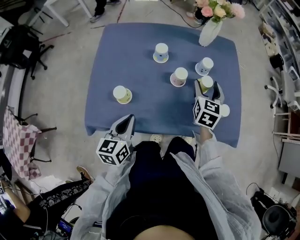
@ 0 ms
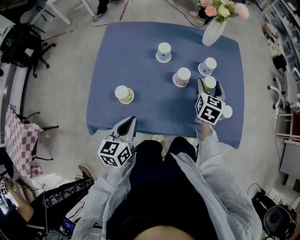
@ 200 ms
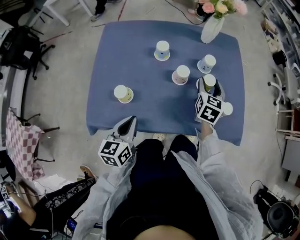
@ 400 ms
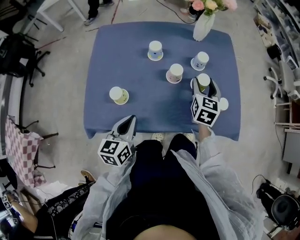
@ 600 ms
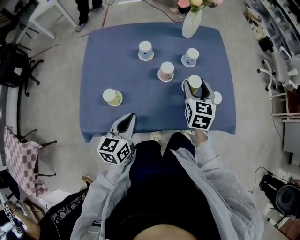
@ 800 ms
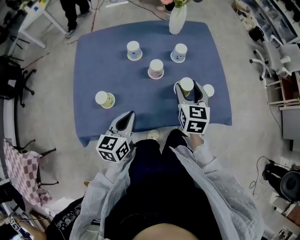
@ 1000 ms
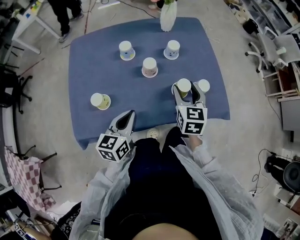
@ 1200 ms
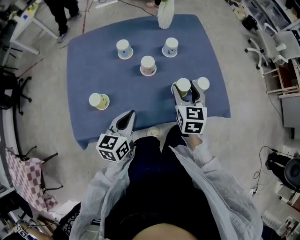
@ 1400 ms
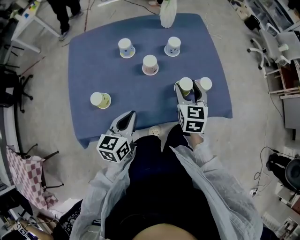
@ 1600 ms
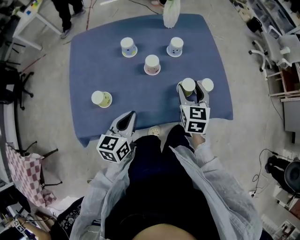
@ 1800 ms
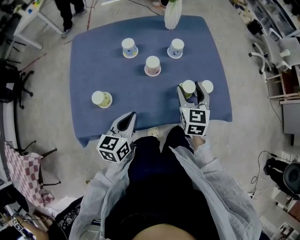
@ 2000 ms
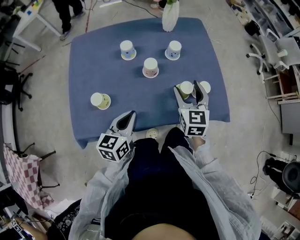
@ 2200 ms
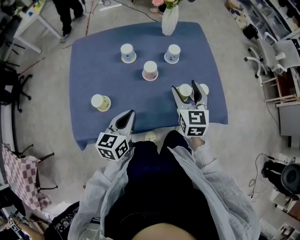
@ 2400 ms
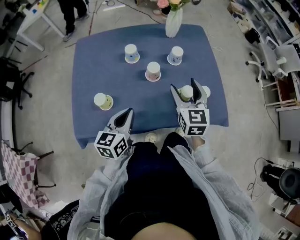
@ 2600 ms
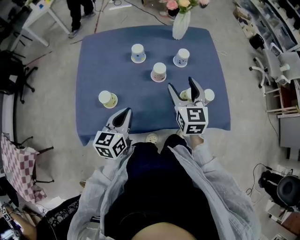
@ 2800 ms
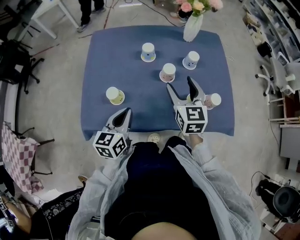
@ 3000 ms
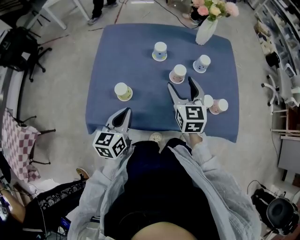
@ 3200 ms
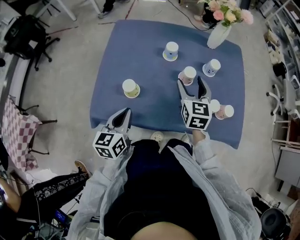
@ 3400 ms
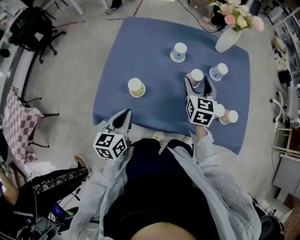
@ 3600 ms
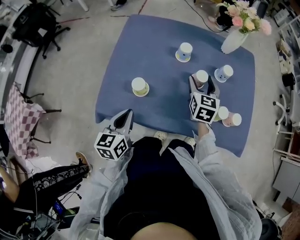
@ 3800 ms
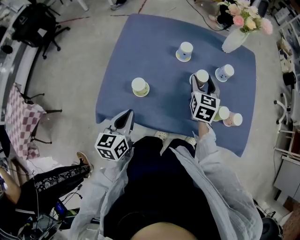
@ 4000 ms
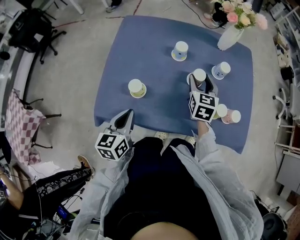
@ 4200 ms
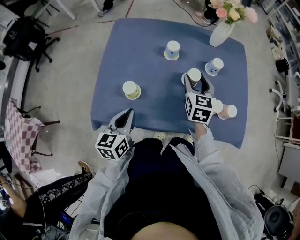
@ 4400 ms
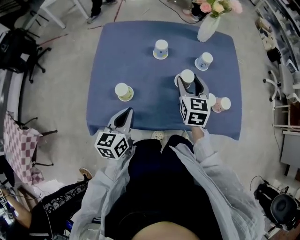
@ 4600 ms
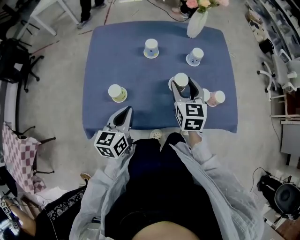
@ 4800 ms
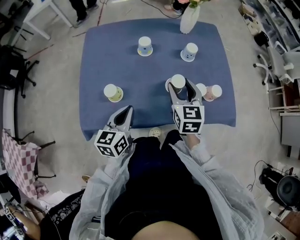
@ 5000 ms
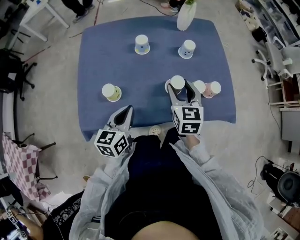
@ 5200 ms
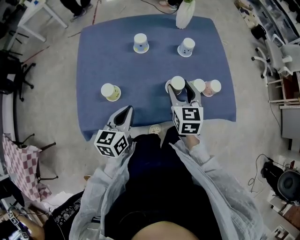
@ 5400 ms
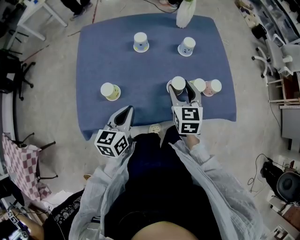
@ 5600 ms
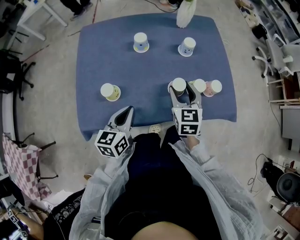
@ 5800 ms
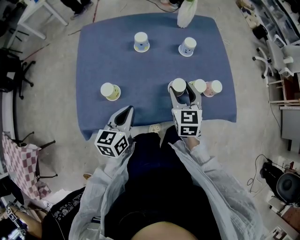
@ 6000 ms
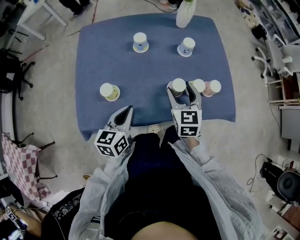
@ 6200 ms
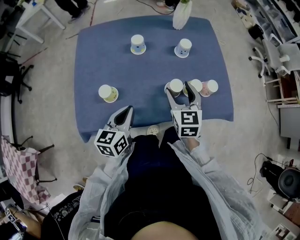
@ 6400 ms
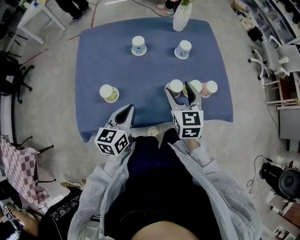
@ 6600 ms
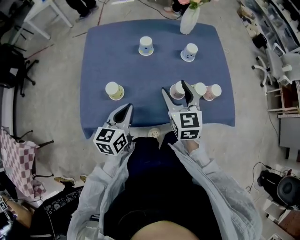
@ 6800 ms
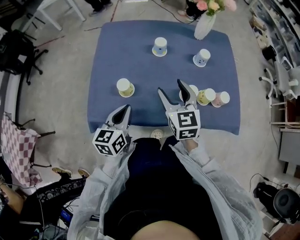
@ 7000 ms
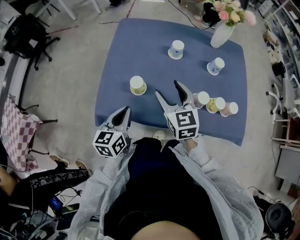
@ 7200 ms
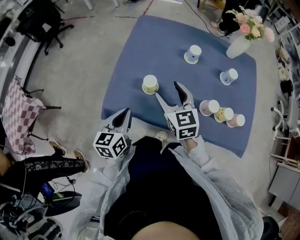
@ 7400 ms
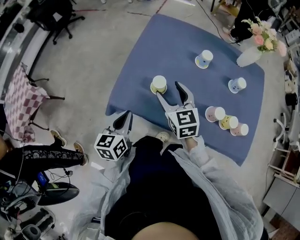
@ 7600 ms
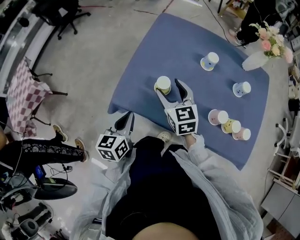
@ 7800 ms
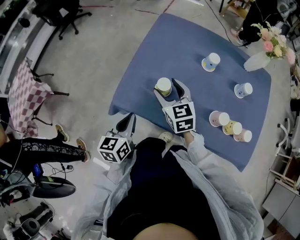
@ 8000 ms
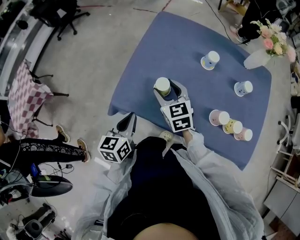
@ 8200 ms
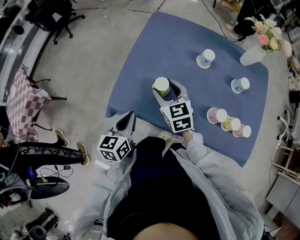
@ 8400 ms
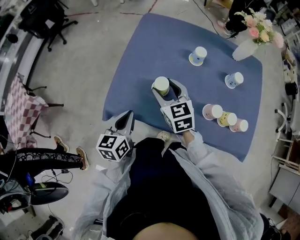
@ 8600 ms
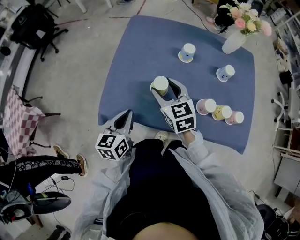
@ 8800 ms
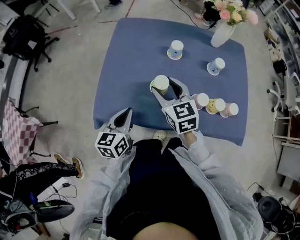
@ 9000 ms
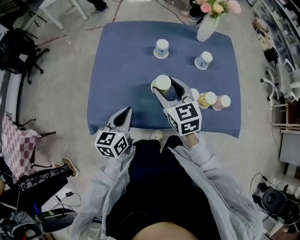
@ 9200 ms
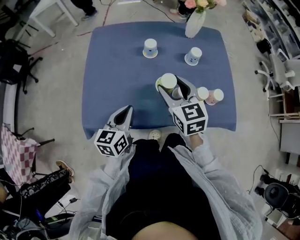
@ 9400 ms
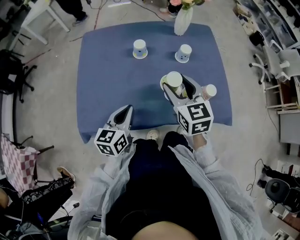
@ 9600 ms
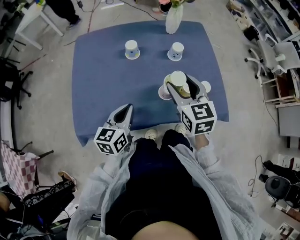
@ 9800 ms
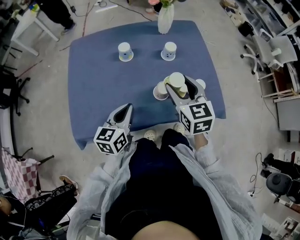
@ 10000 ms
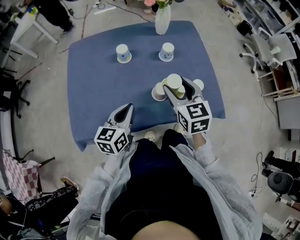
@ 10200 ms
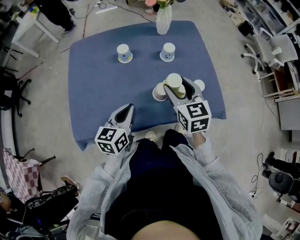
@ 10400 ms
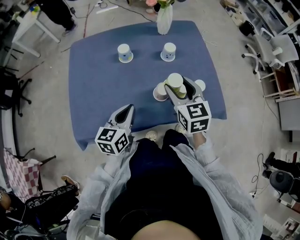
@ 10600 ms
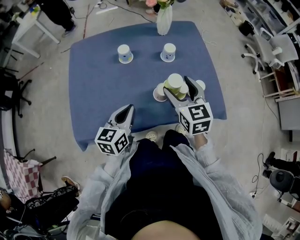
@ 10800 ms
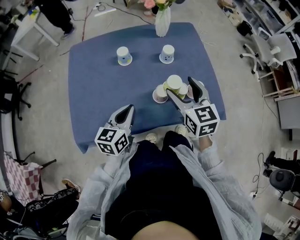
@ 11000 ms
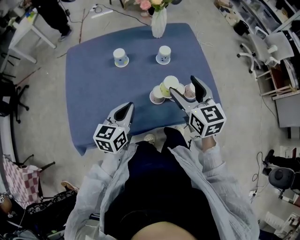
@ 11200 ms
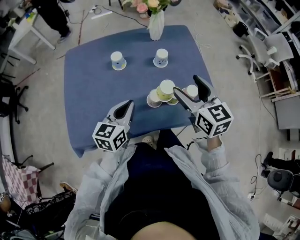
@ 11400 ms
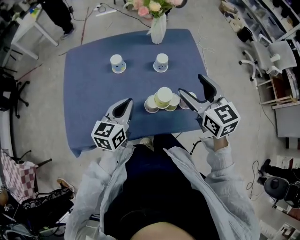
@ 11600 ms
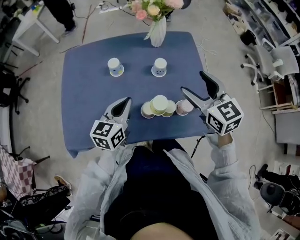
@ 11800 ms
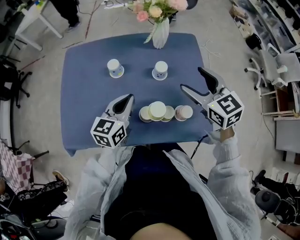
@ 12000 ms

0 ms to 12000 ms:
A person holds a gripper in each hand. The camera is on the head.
0 ms to 1600 ms: The right gripper goes about 10 cm backward. The left gripper shifts about 5 cm to the right.
1600 ms to 3000 ms: The right gripper goes about 10 cm to the left and upward; the left gripper travels to the left by roughly 5 cm.
3000 ms to 4400 ms: The left gripper shifts approximately 5 cm to the left, while the right gripper goes approximately 10 cm forward and downward.
4400 ms to 6000 ms: The left gripper shifts some 5 cm to the right. Meanwhile the right gripper moves backward and to the right, roughly 10 cm.
6000 ms to 7600 ms: The right gripper changes place by some 25 cm, and swivels roughly 40 degrees. The left gripper changes place by about 15 cm, and rotates some 30 degrees.
7600 ms to 9000 ms: Both grippers travel together to the right, approximately 5 cm.
9000 ms to 10400 ms: The grippers both shift to the right by roughly 20 cm. The right gripper rotates some 20 degrees, while the left gripper changes its angle by about 20 degrees.
10400 ms to 12000 ms: The left gripper is displaced forward and to the right by approximately 15 cm. The right gripper heads forward, to the right and upward, covering about 15 cm, and turns by some 20 degrees.

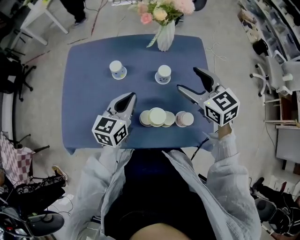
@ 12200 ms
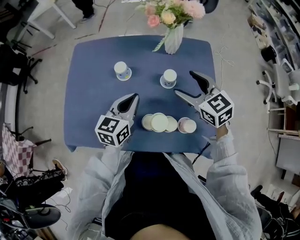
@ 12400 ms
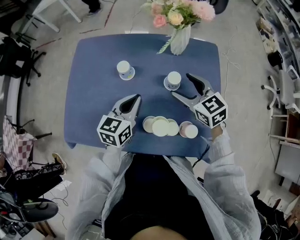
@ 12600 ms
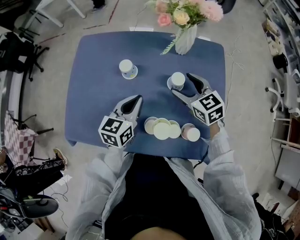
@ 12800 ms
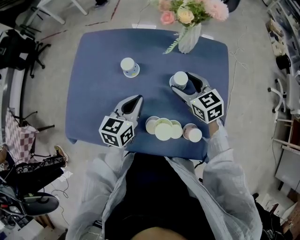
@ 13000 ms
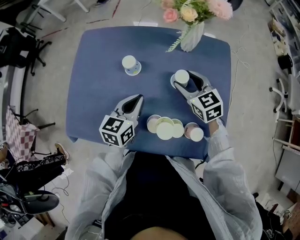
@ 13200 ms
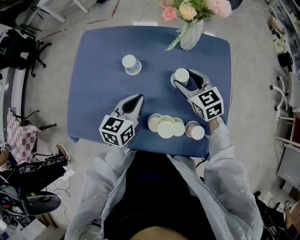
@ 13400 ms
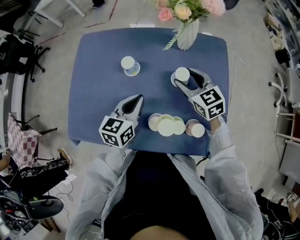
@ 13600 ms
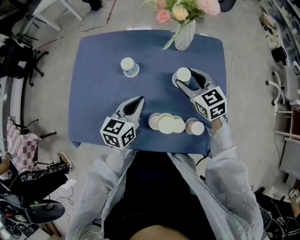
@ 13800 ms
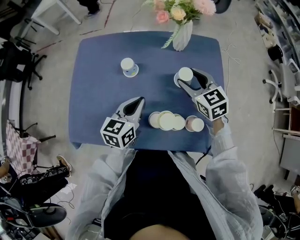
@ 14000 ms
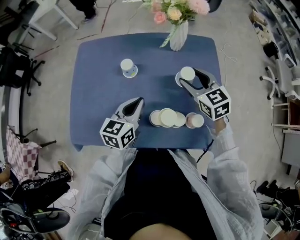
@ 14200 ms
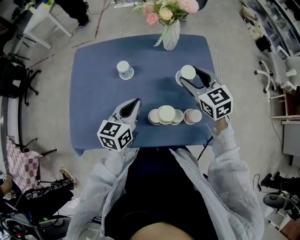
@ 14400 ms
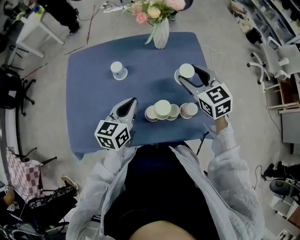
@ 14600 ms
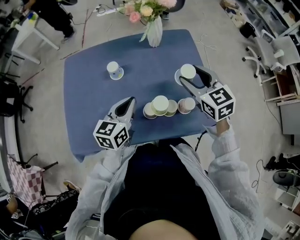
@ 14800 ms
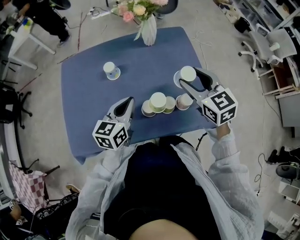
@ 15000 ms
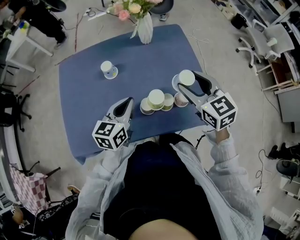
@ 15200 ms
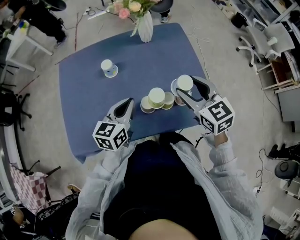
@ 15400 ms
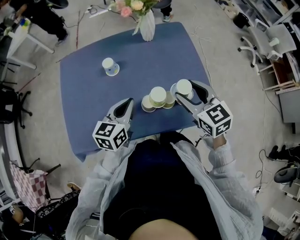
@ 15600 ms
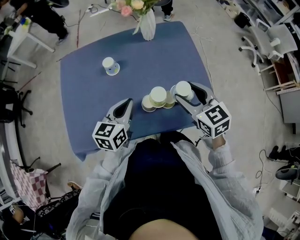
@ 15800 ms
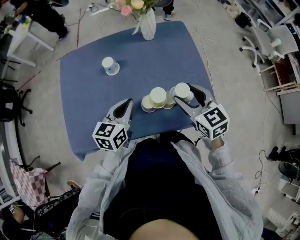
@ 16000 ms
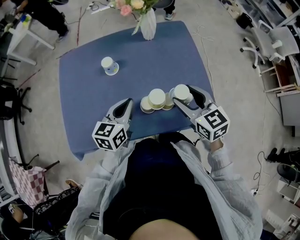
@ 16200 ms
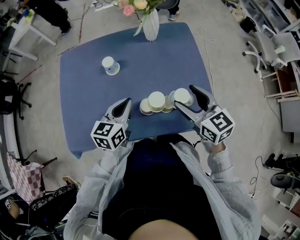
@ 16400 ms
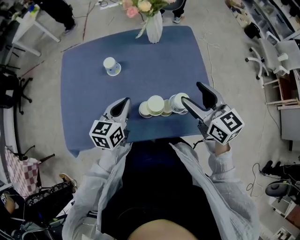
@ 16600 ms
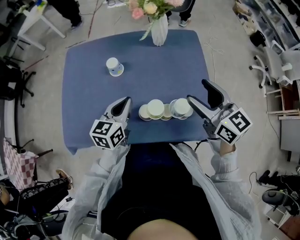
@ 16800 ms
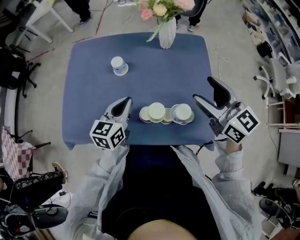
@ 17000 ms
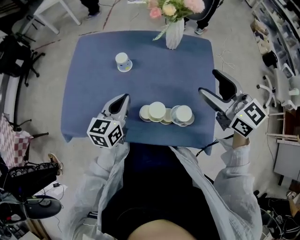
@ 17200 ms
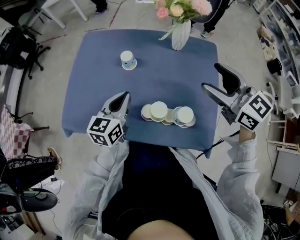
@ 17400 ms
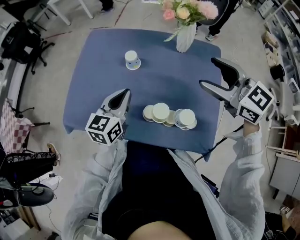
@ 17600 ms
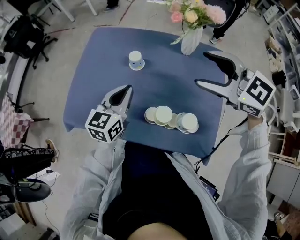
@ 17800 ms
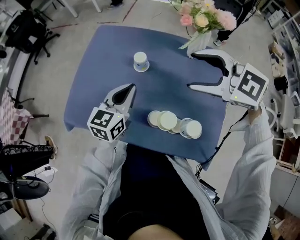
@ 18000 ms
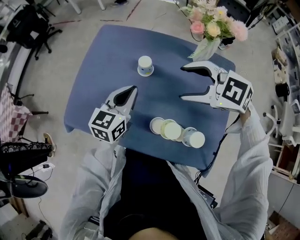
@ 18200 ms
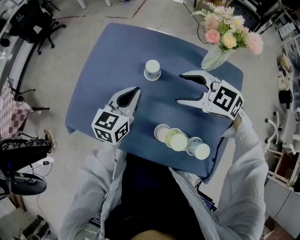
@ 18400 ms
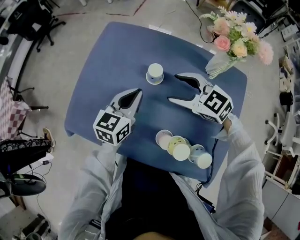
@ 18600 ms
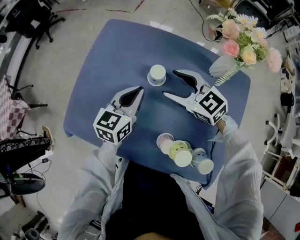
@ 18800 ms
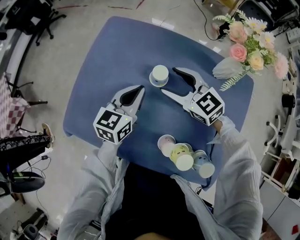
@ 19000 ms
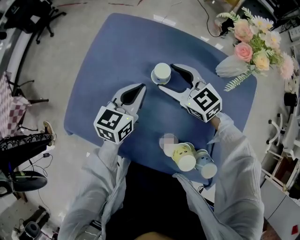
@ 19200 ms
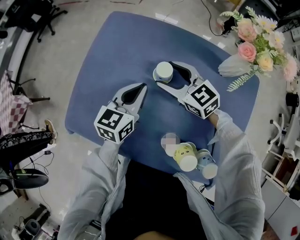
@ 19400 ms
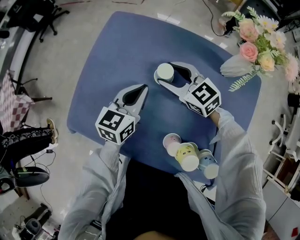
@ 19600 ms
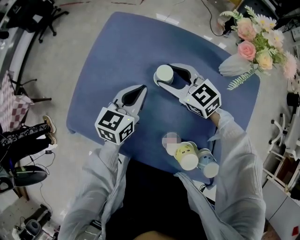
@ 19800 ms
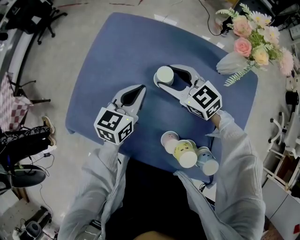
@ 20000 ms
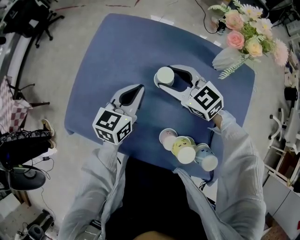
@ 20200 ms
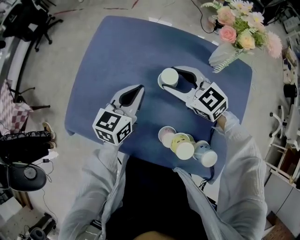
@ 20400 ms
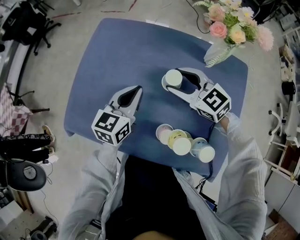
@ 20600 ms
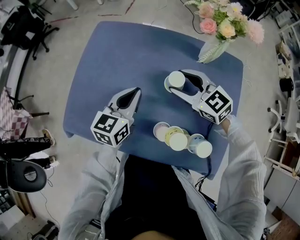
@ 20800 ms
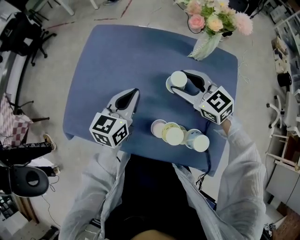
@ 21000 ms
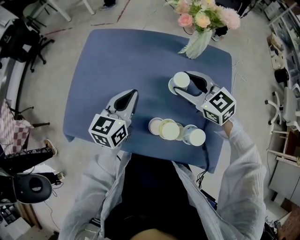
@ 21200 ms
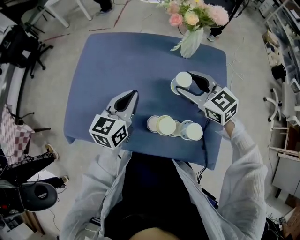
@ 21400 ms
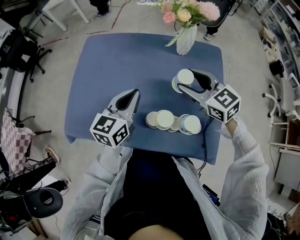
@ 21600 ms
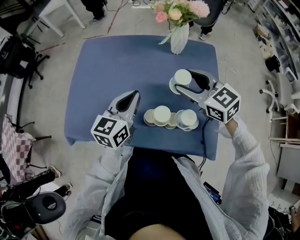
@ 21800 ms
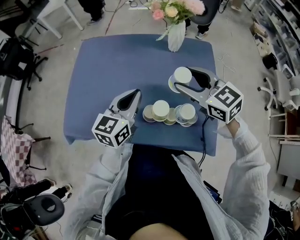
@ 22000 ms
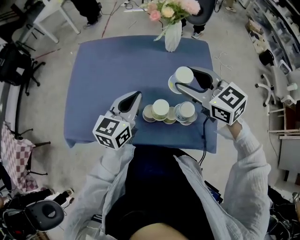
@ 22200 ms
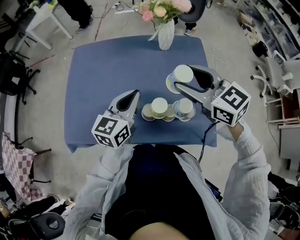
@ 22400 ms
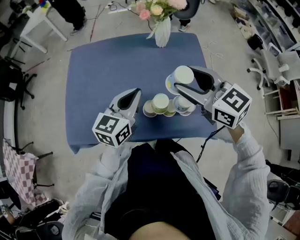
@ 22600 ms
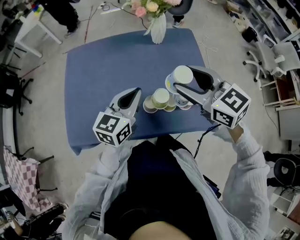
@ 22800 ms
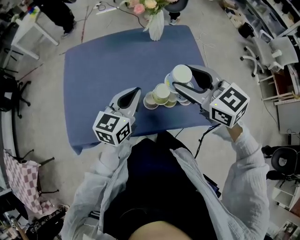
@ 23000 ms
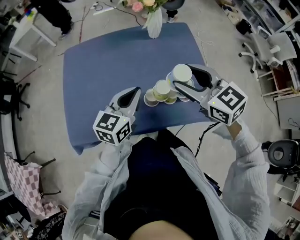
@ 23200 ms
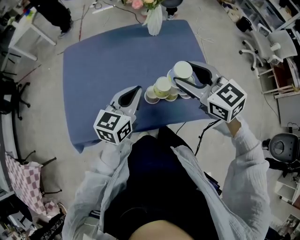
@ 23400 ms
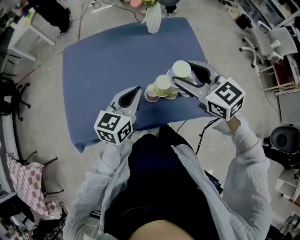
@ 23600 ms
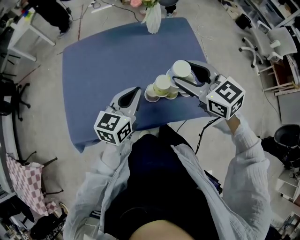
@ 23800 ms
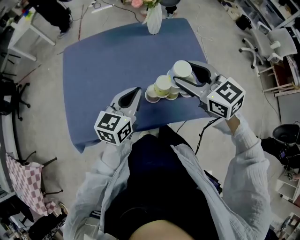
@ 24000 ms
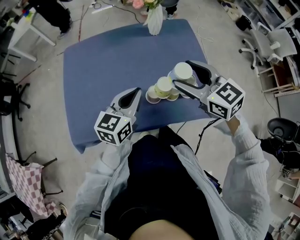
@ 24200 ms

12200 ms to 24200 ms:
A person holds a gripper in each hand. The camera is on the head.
12200 ms to 13800 ms: The left gripper changes place by roughly 5 cm. The right gripper moves downward and forward, roughly 10 cm.
13800 ms to 15200 ms: The right gripper shifts about 20 cm backward, upward and to the right, and swivels some 20 degrees. Meanwhile the left gripper shifts some 5 cm backward.
16600 ms to 18200 ms: The left gripper ends up some 10 cm from where it was, while the right gripper reaches some 10 cm upward, then returns, and turns by roughly 70 degrees.
18200 ms to 19800 ms: The left gripper moves forward and downward, some 10 cm; the right gripper is displaced forward, downward and to the left by about 20 cm, and swivels approximately 20 degrees.
19800 ms to 21200 ms: The left gripper goes about 10 cm backward and upward, while the right gripper moves to the right, backward and upward, about 20 cm.
21200 ms to 22600 ms: The right gripper is displaced upward and backward by approximately 20 cm, while the left gripper goes about 10 cm backward, to the right and upward.
22600 ms to 24200 ms: The left gripper ends up about 5 cm from where it was, while the right gripper shifts by roughly 5 cm.
